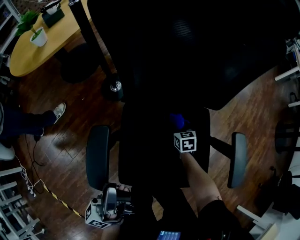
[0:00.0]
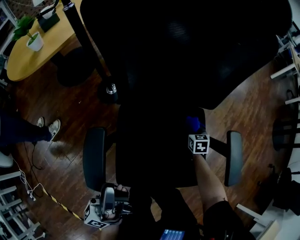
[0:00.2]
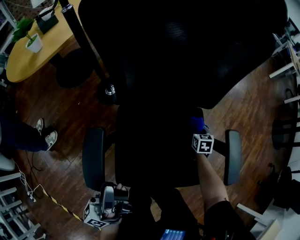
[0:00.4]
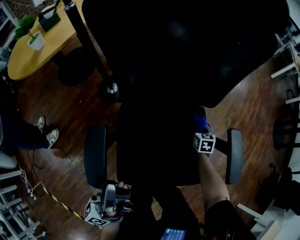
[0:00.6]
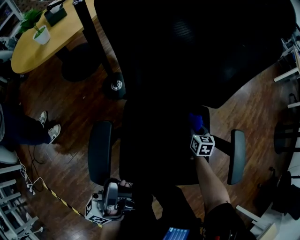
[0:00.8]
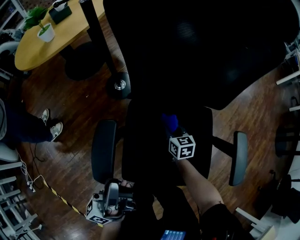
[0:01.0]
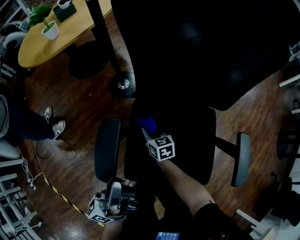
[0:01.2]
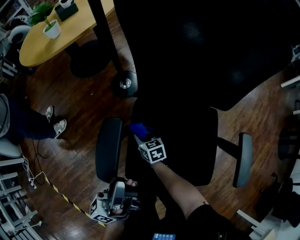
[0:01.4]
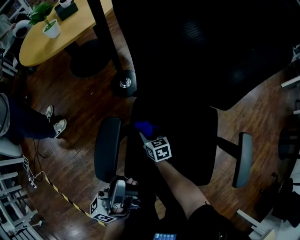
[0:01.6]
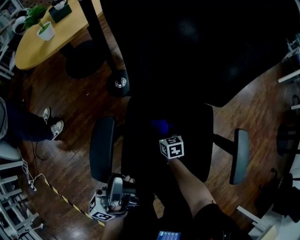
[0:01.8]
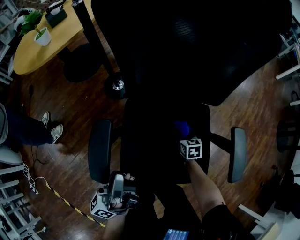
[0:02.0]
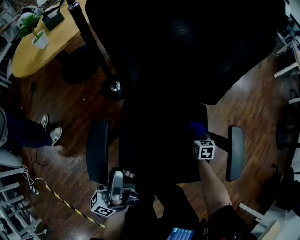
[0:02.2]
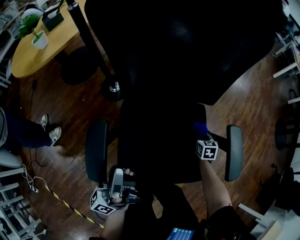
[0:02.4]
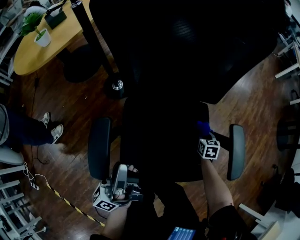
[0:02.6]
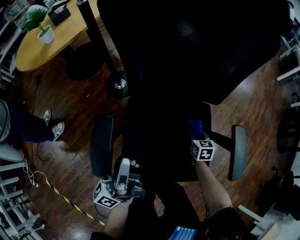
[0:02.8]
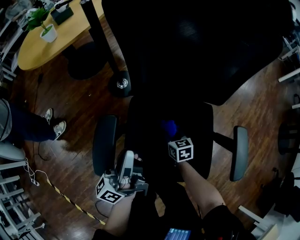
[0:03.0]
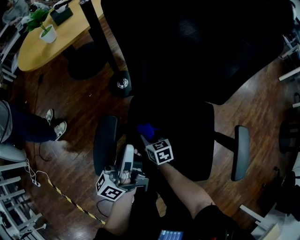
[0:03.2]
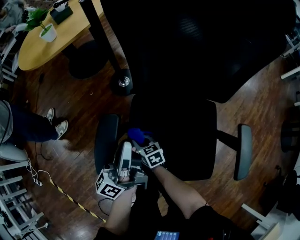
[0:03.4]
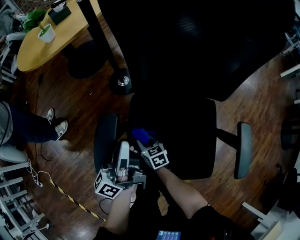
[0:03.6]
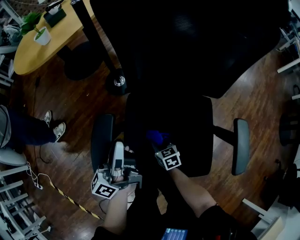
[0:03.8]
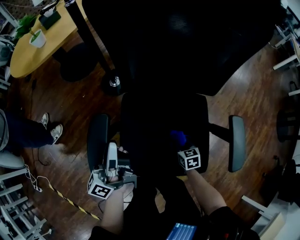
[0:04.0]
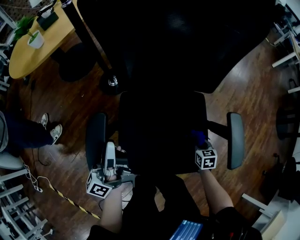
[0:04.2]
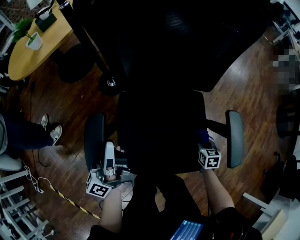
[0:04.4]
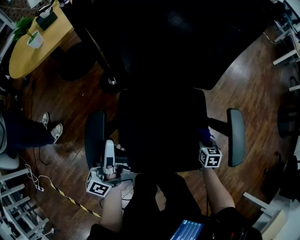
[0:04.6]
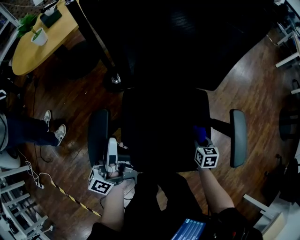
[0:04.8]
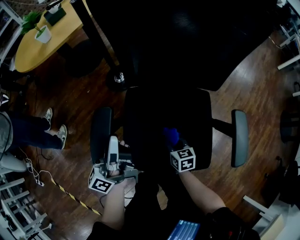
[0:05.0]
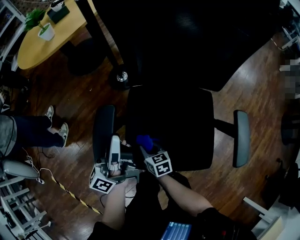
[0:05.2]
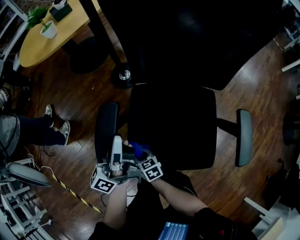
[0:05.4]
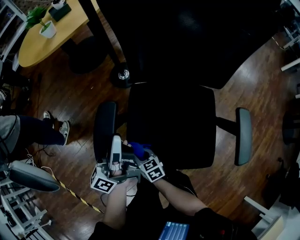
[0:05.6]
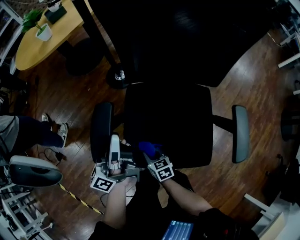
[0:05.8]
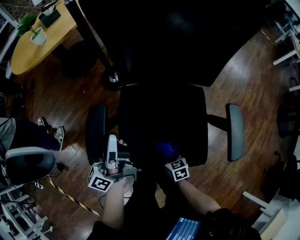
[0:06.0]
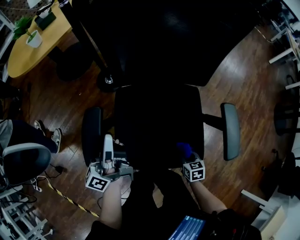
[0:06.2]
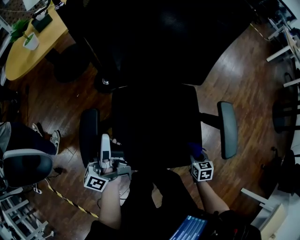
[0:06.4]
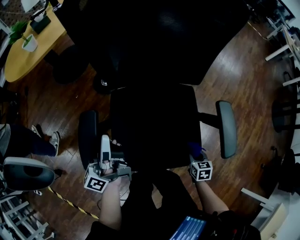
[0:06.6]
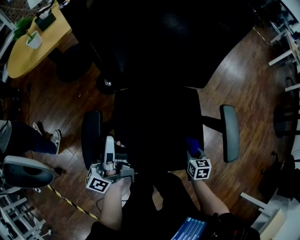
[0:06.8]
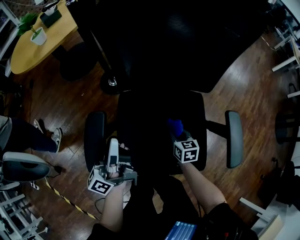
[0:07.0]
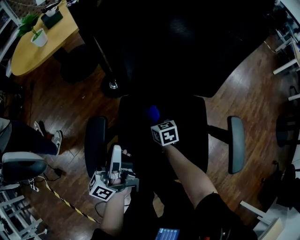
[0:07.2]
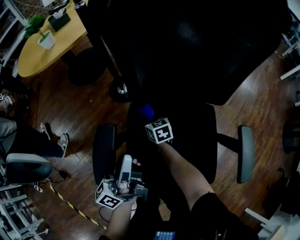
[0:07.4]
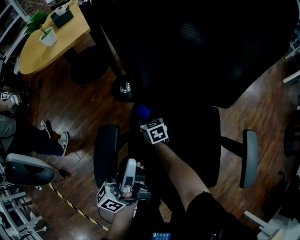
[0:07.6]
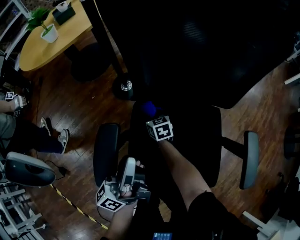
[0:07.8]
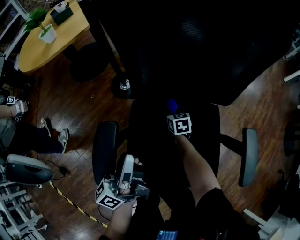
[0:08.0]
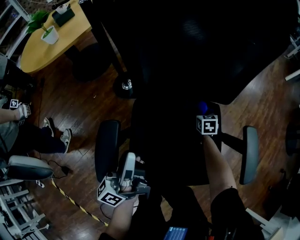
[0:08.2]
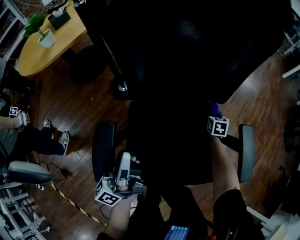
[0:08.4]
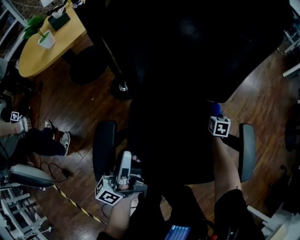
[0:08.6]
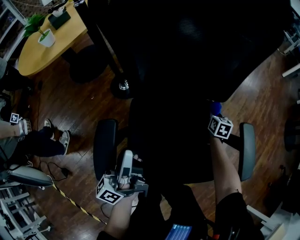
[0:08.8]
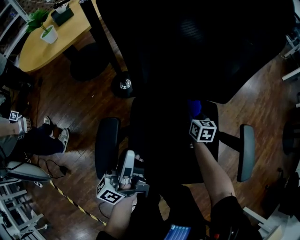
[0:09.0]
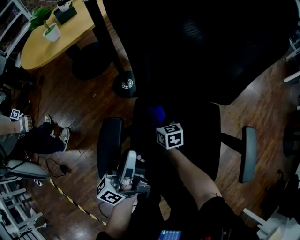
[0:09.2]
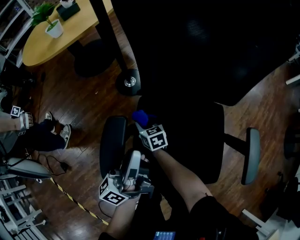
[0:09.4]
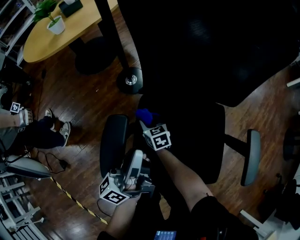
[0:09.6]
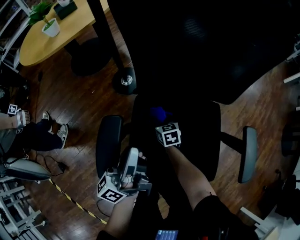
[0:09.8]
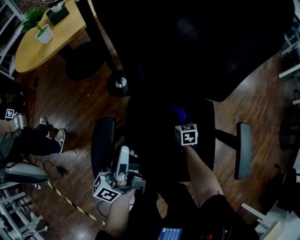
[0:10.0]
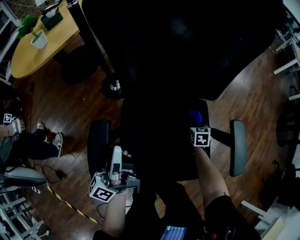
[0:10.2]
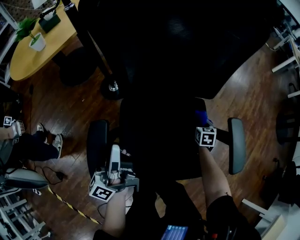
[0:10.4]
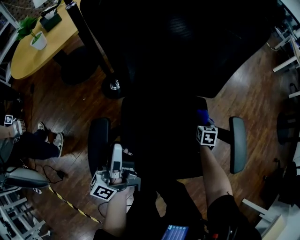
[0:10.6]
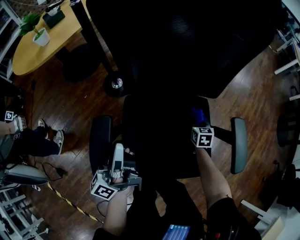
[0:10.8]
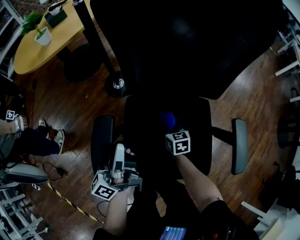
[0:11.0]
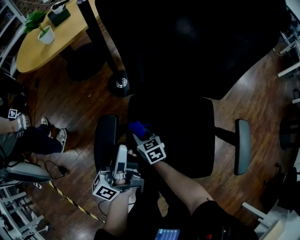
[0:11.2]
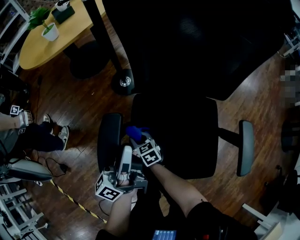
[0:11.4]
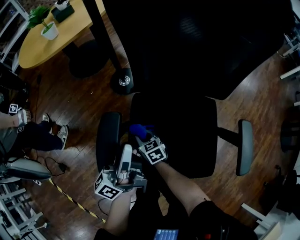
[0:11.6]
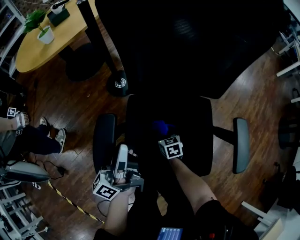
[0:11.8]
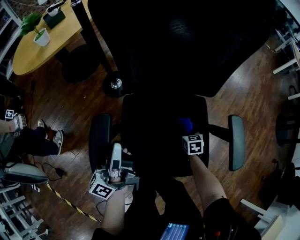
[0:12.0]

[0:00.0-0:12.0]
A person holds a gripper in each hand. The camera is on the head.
0:00.0 to 0:01.6: The right gripper shifts by approximately 20 cm, and changes its angle by roughly 20 degrees.
0:01.6 to 0:03.0: The right gripper goes some 15 cm to the right; the left gripper shifts roughly 5 cm forward.
0:03.0 to 0:04.4: The right gripper shifts some 25 cm to the right and backward, and turns by approximately 20 degrees.
0:04.4 to 0:06.0: The right gripper rotates roughly 20 degrees.
0:06.0 to 0:07.6: The right gripper is displaced forward and to the left by approximately 35 cm.
0:07.6 to 0:09.0: The right gripper swivels some 30 degrees.
0:09.0 to 0:10.4: The right gripper changes its angle by some 20 degrees.

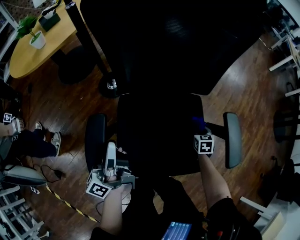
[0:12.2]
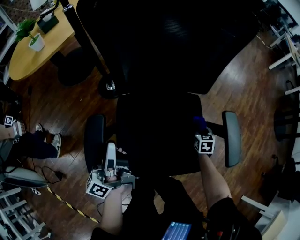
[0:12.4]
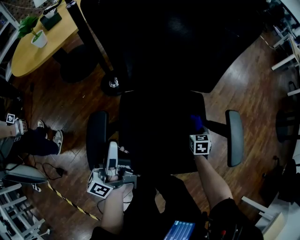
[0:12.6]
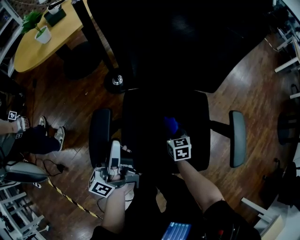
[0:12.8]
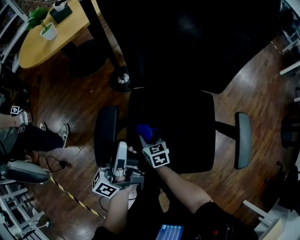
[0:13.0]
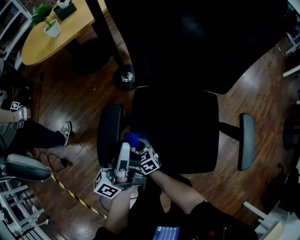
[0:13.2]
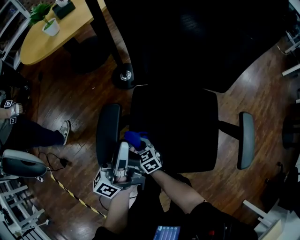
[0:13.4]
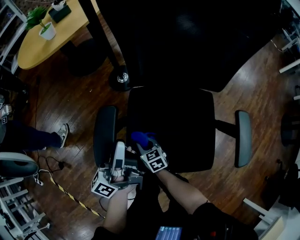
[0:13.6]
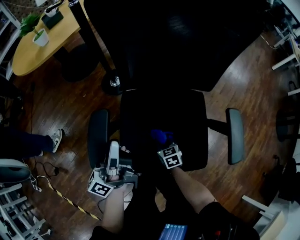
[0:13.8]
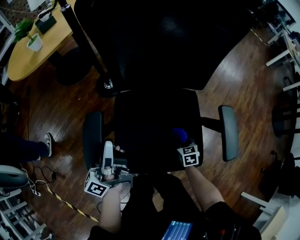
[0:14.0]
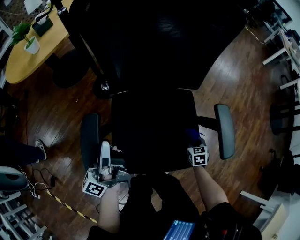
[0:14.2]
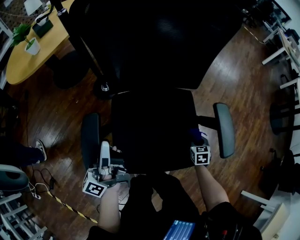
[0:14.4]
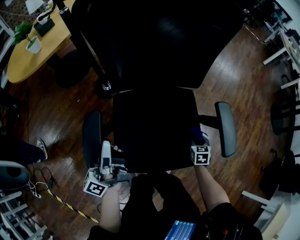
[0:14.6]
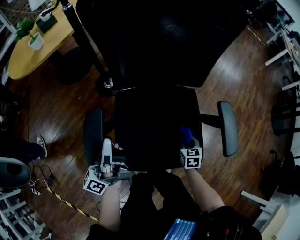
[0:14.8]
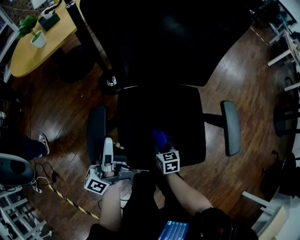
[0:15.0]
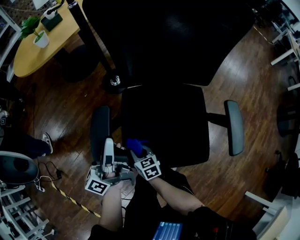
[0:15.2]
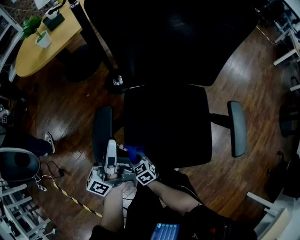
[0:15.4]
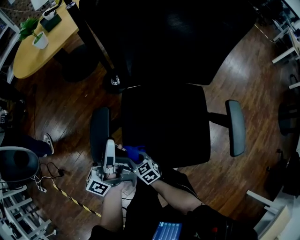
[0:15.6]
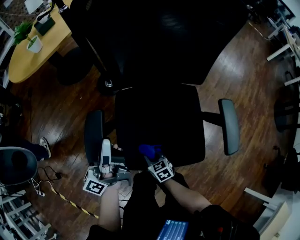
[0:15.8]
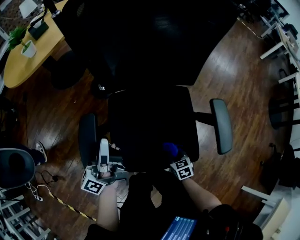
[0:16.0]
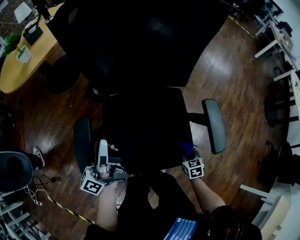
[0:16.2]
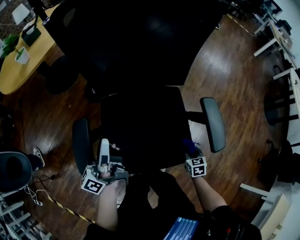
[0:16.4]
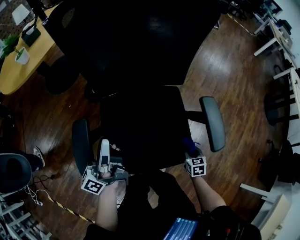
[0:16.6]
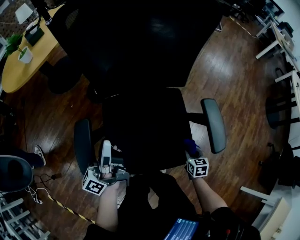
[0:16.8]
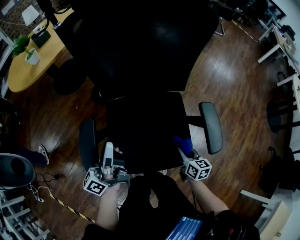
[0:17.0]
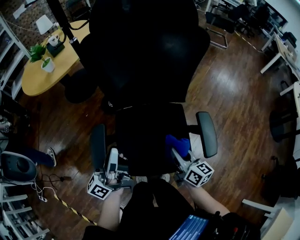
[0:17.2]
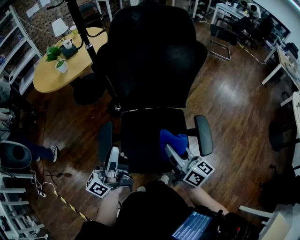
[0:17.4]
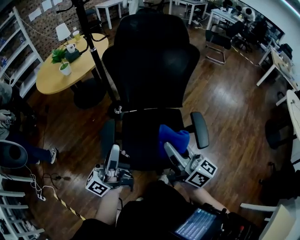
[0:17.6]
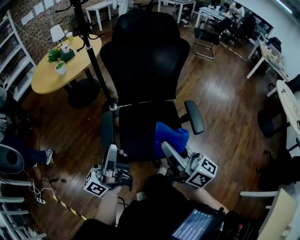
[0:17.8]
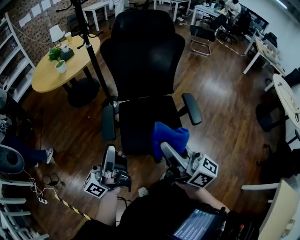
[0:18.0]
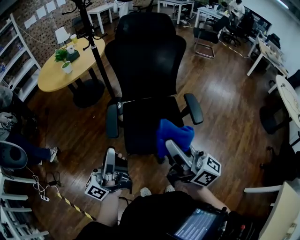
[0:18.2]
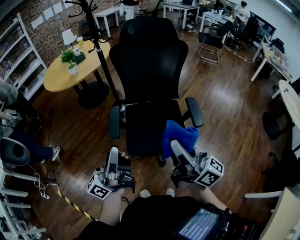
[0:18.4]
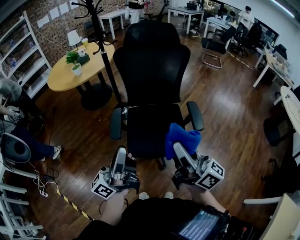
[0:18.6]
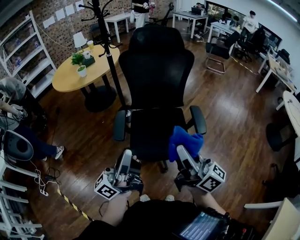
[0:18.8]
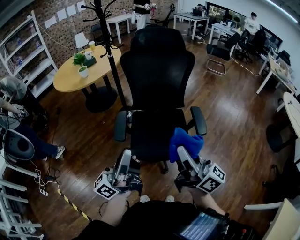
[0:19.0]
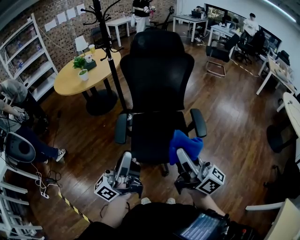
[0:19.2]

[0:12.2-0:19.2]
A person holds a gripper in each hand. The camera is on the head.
0:12.2 to 0:13.6: The right gripper shifts by about 40 cm, and rotates some 40 degrees.
0:13.6 to 0:15.0: The right gripper changes its angle by approximately 20 degrees.
0:15.0 to 0:16.4: The left gripper shifts by some 5 cm; the right gripper ends up approximately 25 cm from where it was.
0:16.4 to 0:17.8: The right gripper goes some 50 cm upward, and angles its fingers upward, by roughly 70 degrees. The left gripper shifts roughly 30 cm upward and backward.
0:17.8 to 0:19.2: The grippers both shift backward by approximately 10 cm.

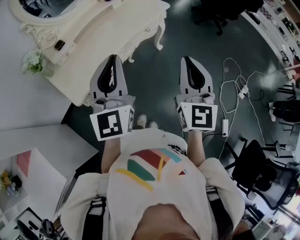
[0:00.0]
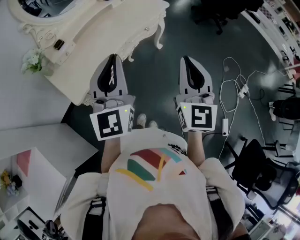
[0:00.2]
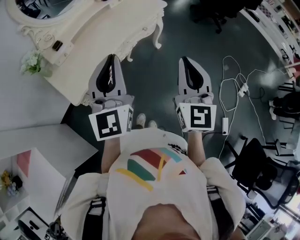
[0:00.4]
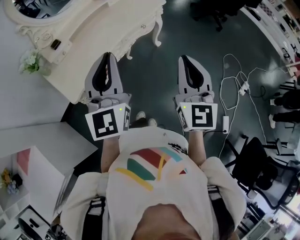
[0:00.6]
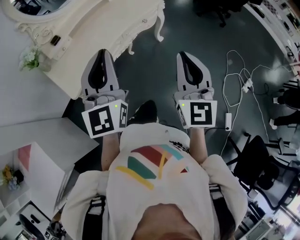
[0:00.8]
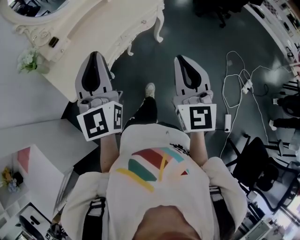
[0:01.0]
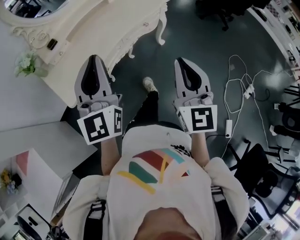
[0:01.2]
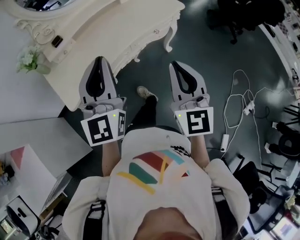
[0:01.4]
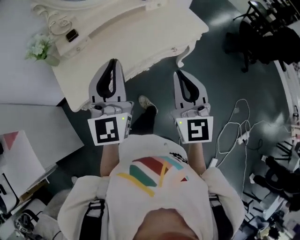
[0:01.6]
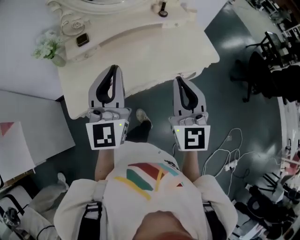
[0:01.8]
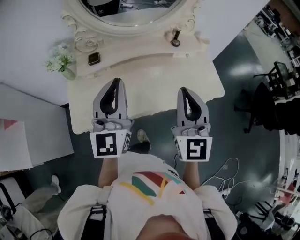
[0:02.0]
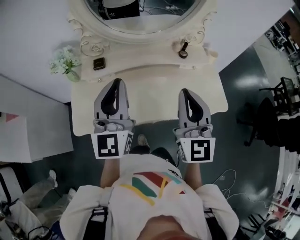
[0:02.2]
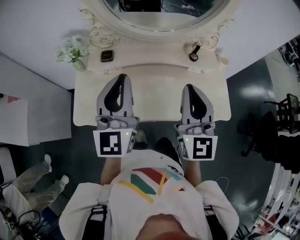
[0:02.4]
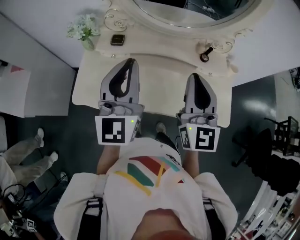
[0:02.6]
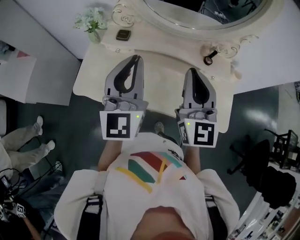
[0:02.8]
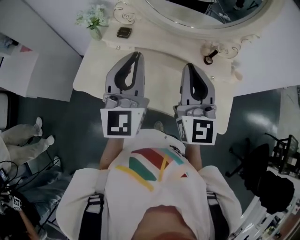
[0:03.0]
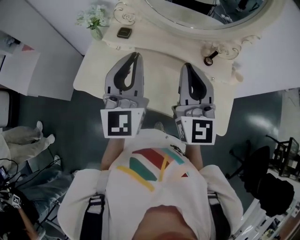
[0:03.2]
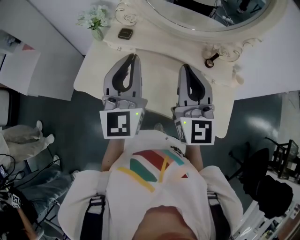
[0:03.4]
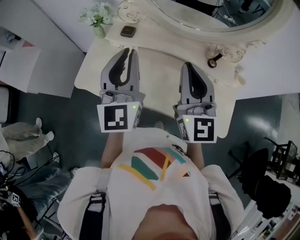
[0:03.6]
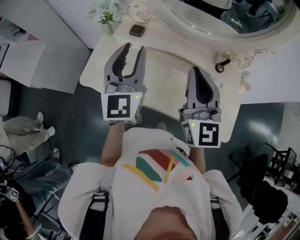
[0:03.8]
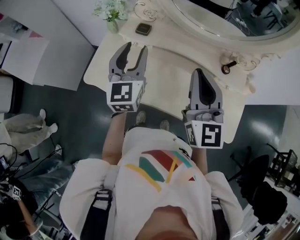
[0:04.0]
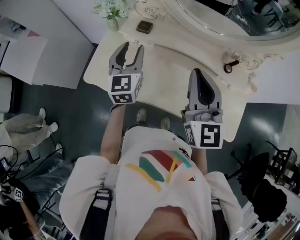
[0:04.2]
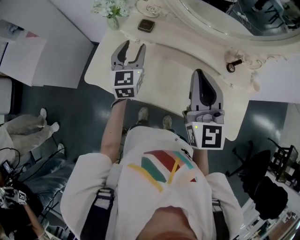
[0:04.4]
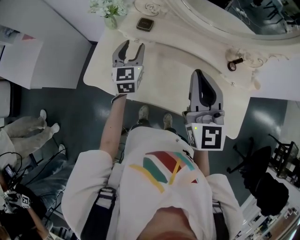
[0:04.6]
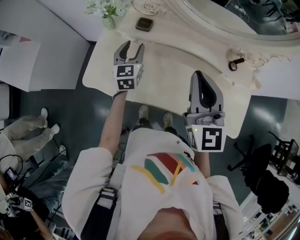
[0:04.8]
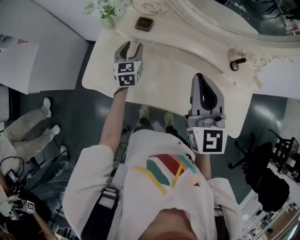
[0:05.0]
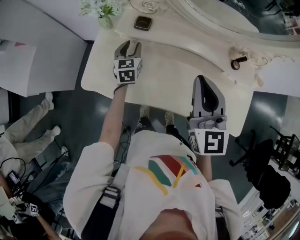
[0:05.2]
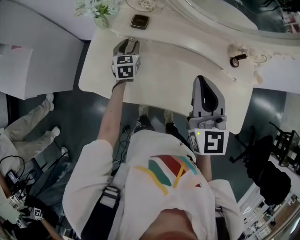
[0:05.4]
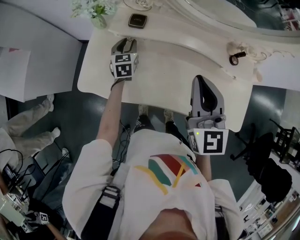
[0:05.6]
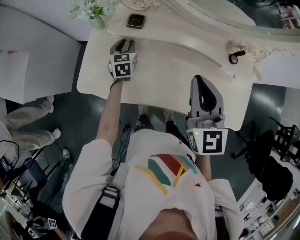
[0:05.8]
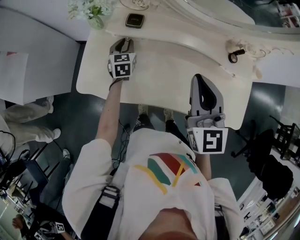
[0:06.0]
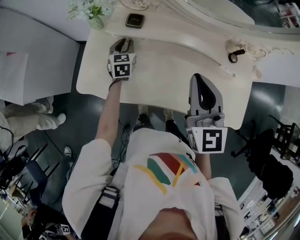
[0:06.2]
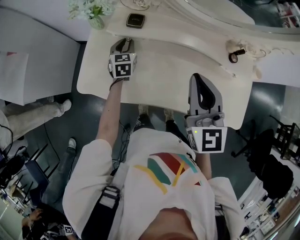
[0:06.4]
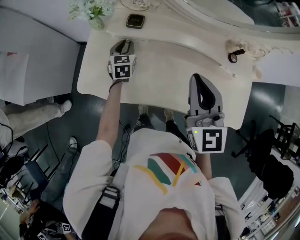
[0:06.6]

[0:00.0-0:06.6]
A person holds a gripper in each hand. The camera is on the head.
0:00.0 to 0:01.6: The right gripper goes about 20 cm forward and downward, and swivels some 20 degrees. Meanwhile the left gripper heads forward, covering approximately 15 cm.
0:01.6 to 0:03.2: The right gripper ends up some 35 cm from where it was, and swivels roughly 50 degrees. The left gripper shifts by about 20 cm, and turns by roughly 50 degrees.
0:03.2 to 0:05.0: The left gripper goes roughly 35 cm downward, forward and to the left, points its fingers roughly 30 degrees further downward, and opens up; the right gripper shifts approximately 10 cm to the left, downward and forward.
0:05.0 to 0:06.6: The left gripper travels downward by approximately 5 cm, and closes.
